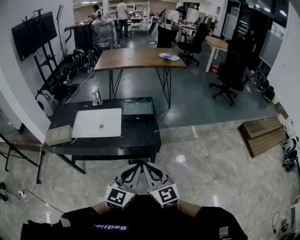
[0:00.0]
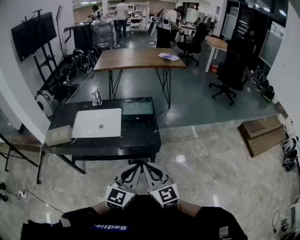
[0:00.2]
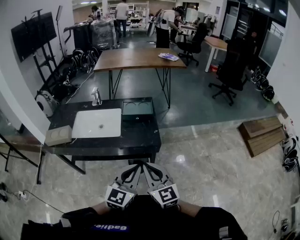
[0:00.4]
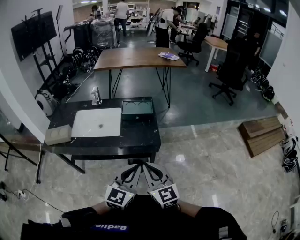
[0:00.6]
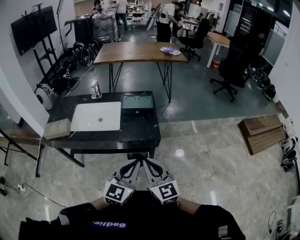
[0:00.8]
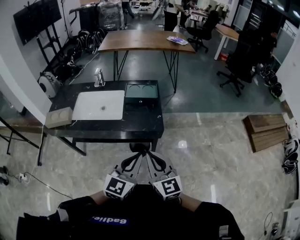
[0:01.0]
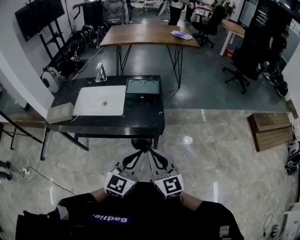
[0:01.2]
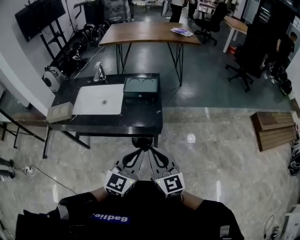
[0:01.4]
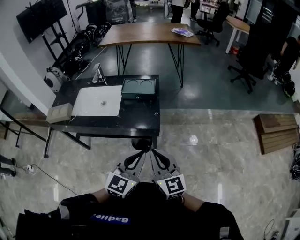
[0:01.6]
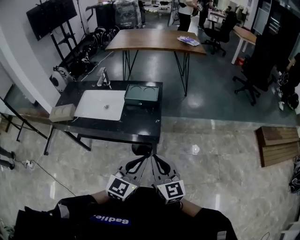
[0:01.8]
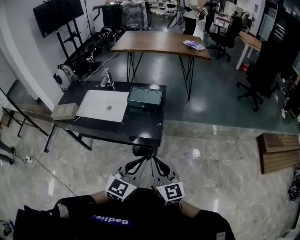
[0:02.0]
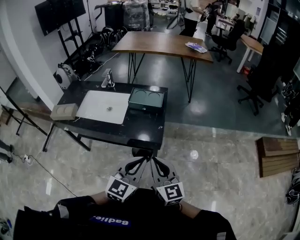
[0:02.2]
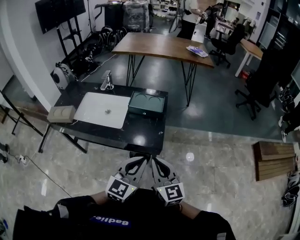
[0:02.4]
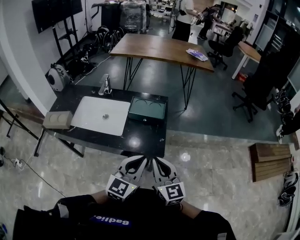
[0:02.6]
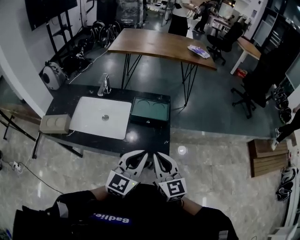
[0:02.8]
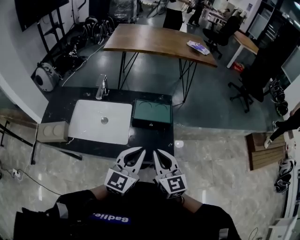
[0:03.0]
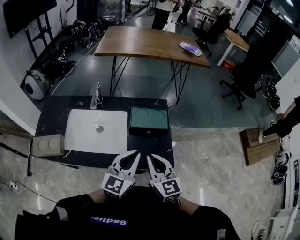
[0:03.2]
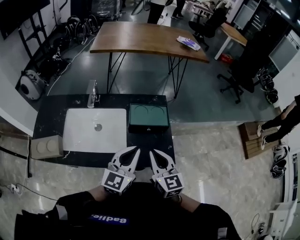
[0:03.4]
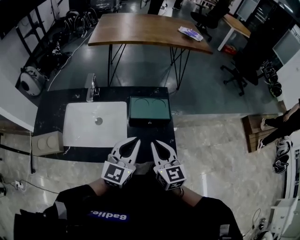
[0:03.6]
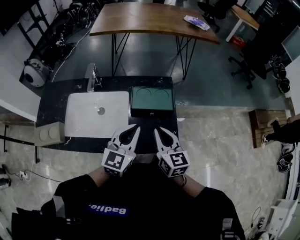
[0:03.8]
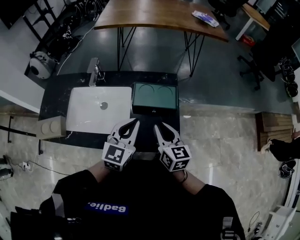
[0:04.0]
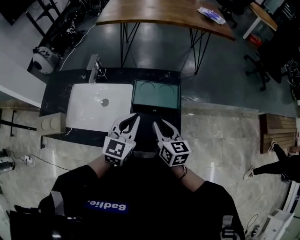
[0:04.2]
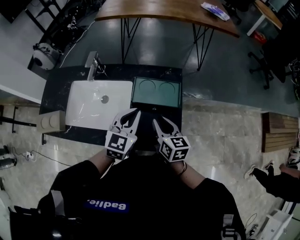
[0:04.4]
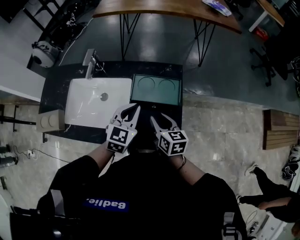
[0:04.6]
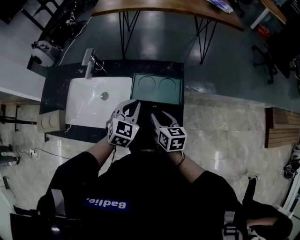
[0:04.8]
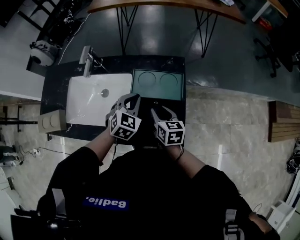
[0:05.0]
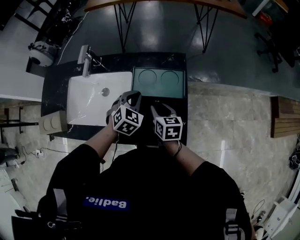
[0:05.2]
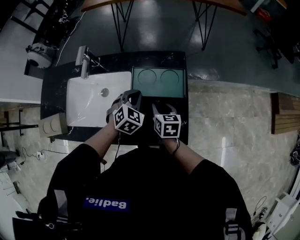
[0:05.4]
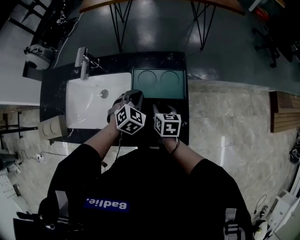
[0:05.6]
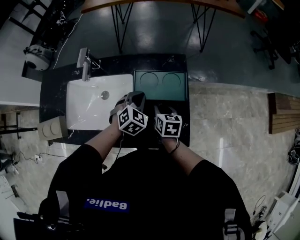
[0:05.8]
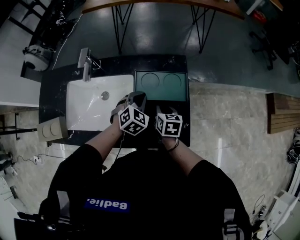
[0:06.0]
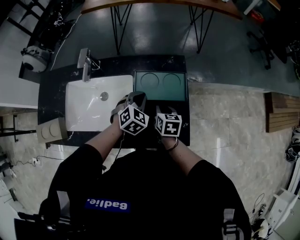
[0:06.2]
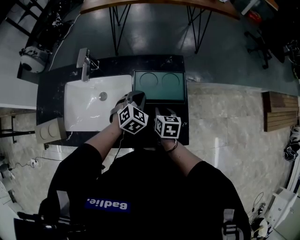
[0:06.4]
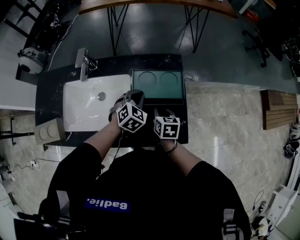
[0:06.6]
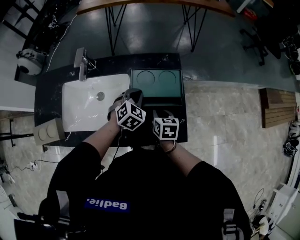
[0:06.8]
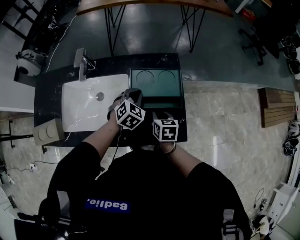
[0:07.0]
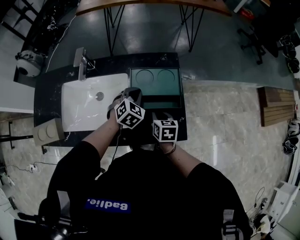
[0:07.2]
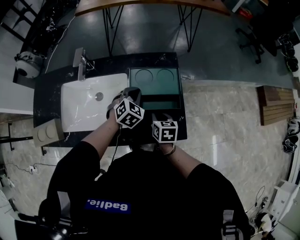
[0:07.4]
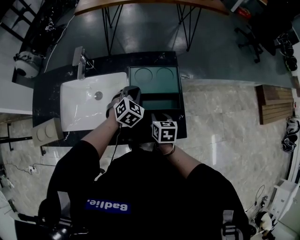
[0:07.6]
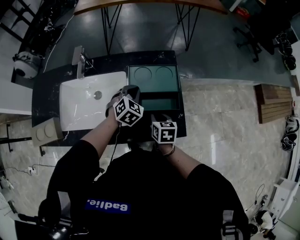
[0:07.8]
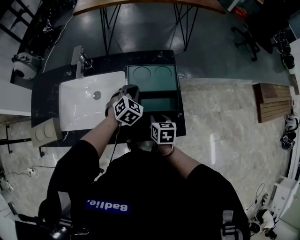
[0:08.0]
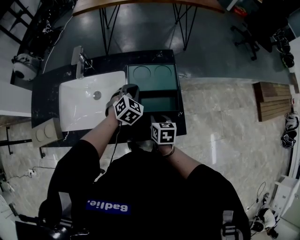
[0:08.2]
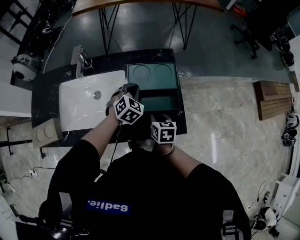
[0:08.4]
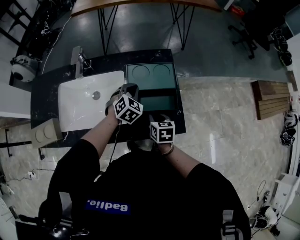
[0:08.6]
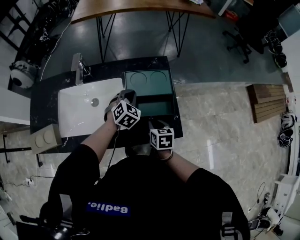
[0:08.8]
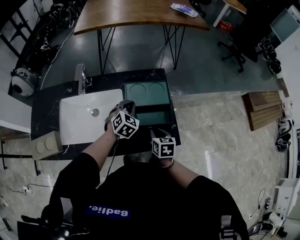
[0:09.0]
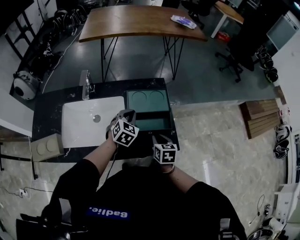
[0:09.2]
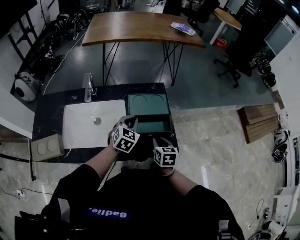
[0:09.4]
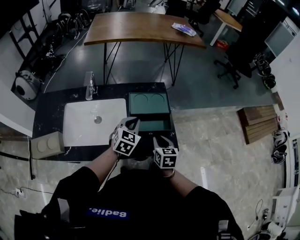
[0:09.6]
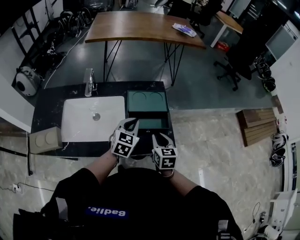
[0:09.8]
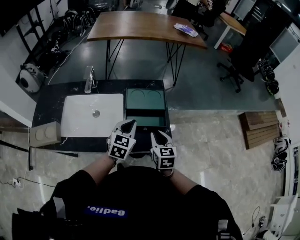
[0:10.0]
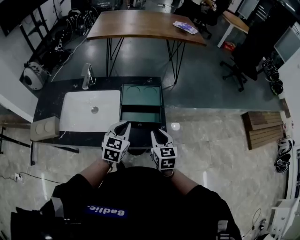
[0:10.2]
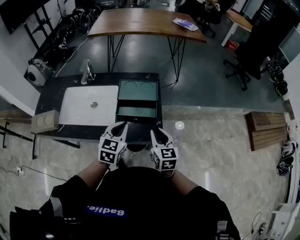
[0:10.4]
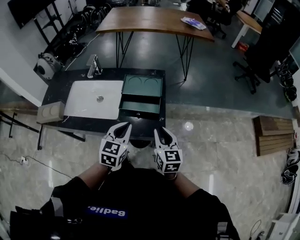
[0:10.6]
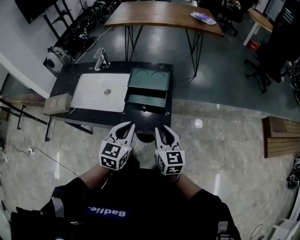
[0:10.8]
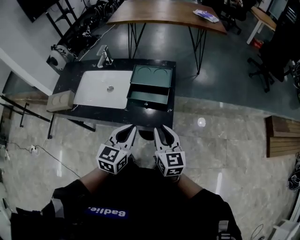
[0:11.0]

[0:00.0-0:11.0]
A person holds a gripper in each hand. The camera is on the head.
0:00.0 to 0:01.6: Both grippers travel together to the right, some 10 cm.
0:01.6 to 0:03.2: Both grippers move forward and to the left, approximately 30 cm.
0:03.2 to 0:04.8: The right gripper heads downward and forward, covering approximately 20 cm, swivels roughly 30 degrees, and opens up. The left gripper is displaced forward and downward by approximately 20 cm, and turns by some 30 degrees.
0:04.8 to 0:06.2: Both grippers travel together downward, some 5 cm.
0:06.2 to 0:07.8: The right gripper heads backward, covering some 10 cm.
0:07.8 to 0:09.4: The left gripper goes about 10 cm upward and backward. Meanwhile the right gripper travels upward by approximately 5 cm.
0:09.4 to 0:11.0: The left gripper is displaced backward and to the right by about 25 cm, and turns by some 30 degrees. Meanwhile the right gripper is displaced upward, backward and to the right by some 20 cm, and swivels approximately 40 degrees.

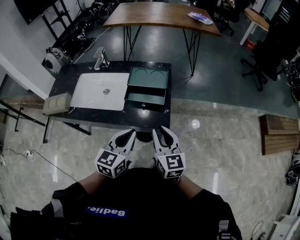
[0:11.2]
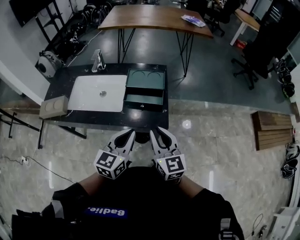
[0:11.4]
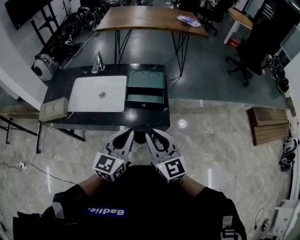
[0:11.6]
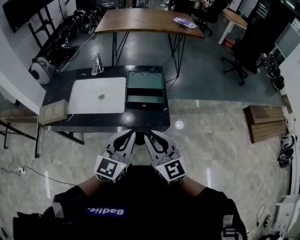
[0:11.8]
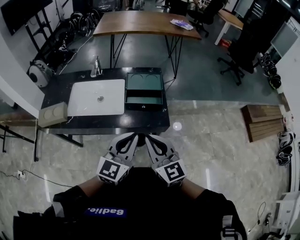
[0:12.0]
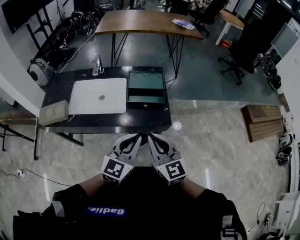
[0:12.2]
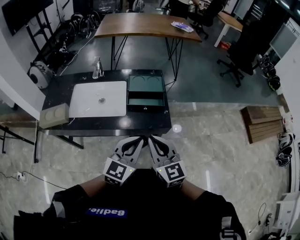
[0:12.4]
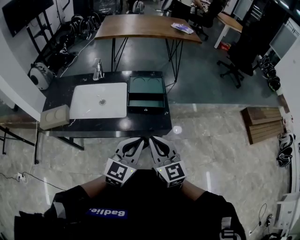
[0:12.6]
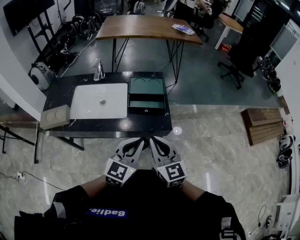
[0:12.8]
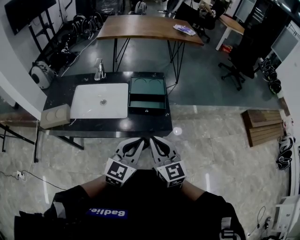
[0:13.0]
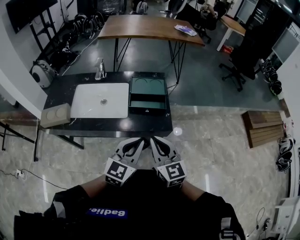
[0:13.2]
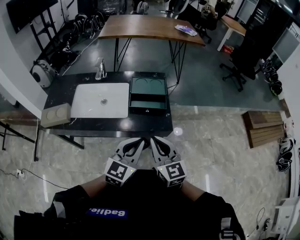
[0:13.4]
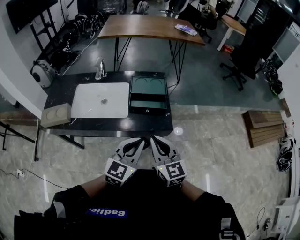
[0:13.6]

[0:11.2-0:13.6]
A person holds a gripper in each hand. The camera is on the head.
0:11.2 to 0:12.4: The right gripper goes roughly 15 cm to the left, backward and upward. The left gripper shifts roughly 10 cm backward and upward, and rotates about 20 degrees.
0:12.4 to 0:13.6: The grippers move only a little.

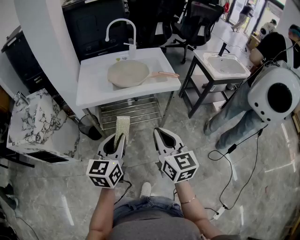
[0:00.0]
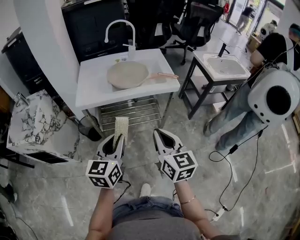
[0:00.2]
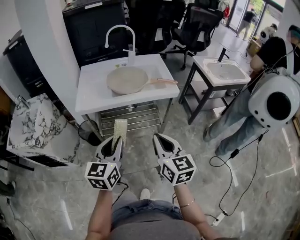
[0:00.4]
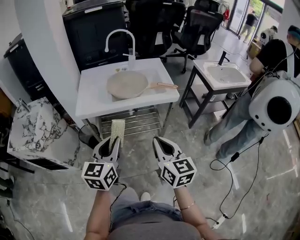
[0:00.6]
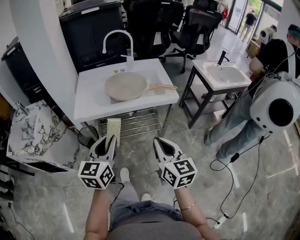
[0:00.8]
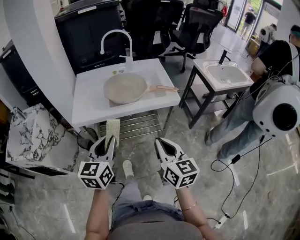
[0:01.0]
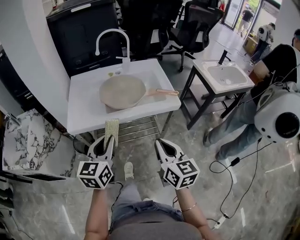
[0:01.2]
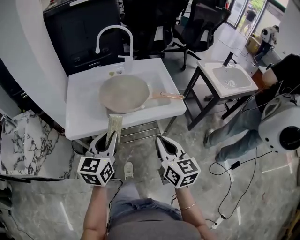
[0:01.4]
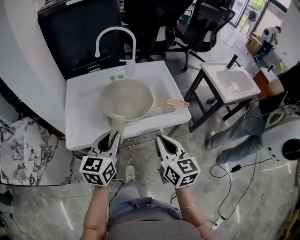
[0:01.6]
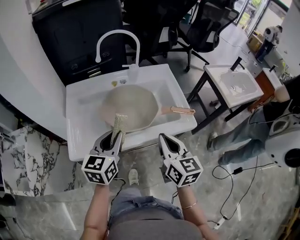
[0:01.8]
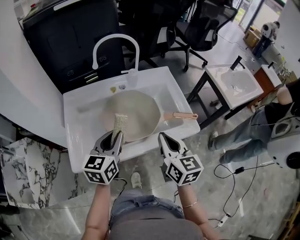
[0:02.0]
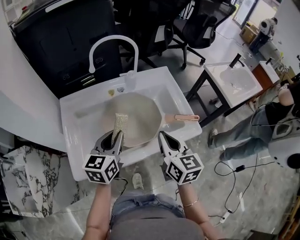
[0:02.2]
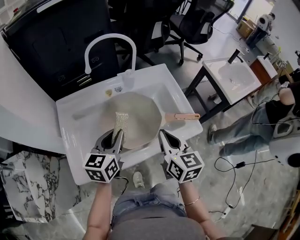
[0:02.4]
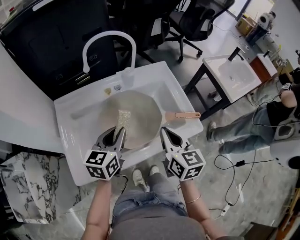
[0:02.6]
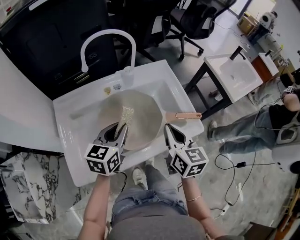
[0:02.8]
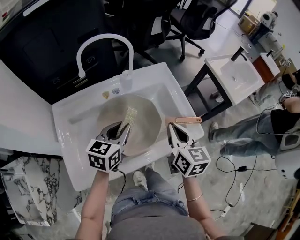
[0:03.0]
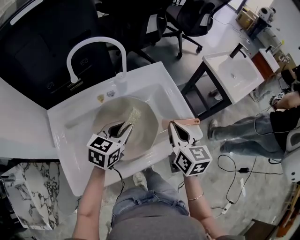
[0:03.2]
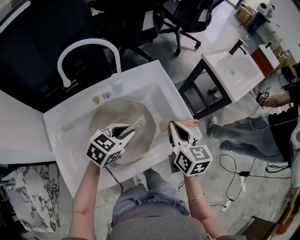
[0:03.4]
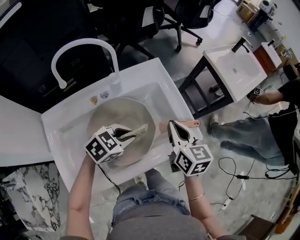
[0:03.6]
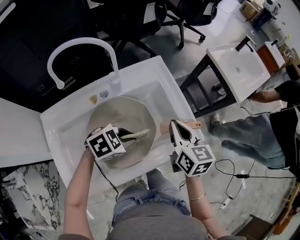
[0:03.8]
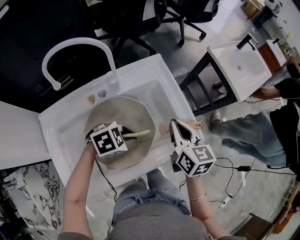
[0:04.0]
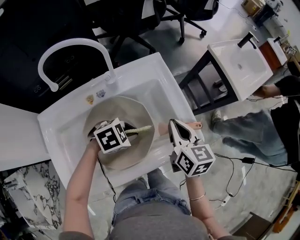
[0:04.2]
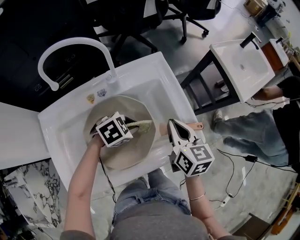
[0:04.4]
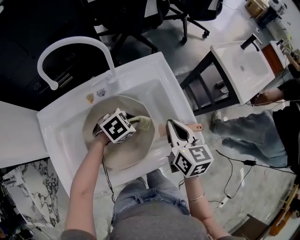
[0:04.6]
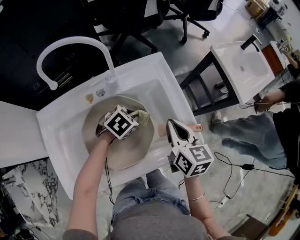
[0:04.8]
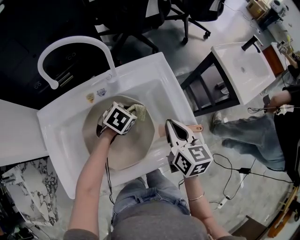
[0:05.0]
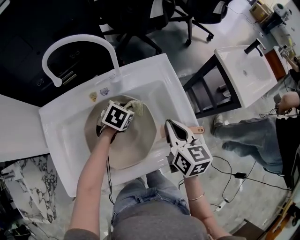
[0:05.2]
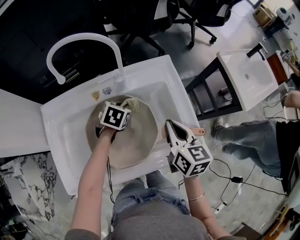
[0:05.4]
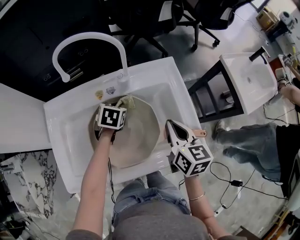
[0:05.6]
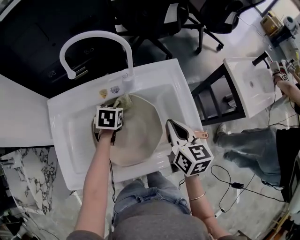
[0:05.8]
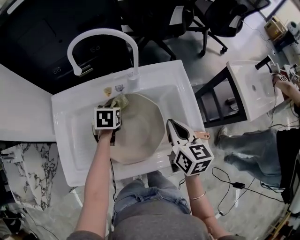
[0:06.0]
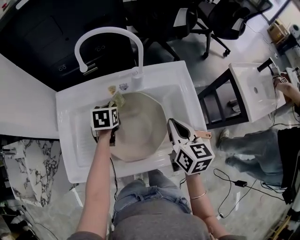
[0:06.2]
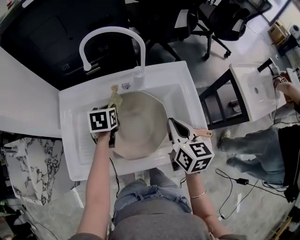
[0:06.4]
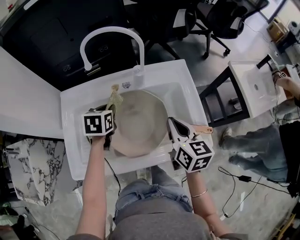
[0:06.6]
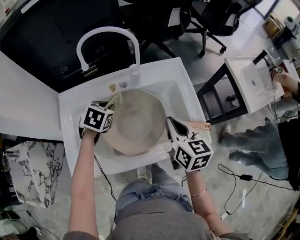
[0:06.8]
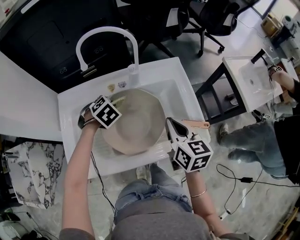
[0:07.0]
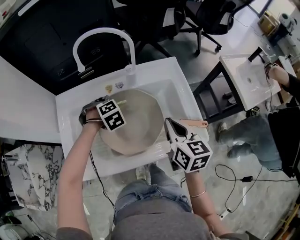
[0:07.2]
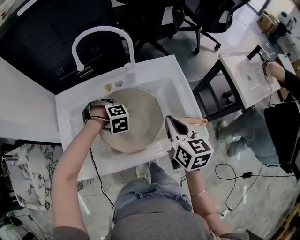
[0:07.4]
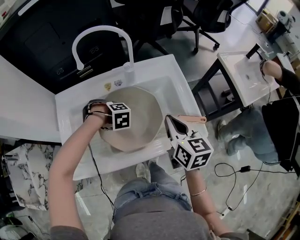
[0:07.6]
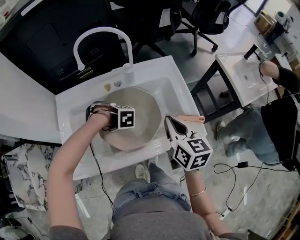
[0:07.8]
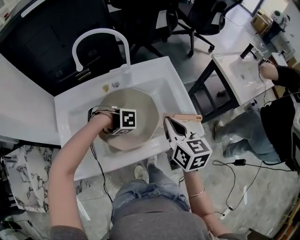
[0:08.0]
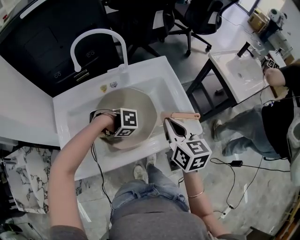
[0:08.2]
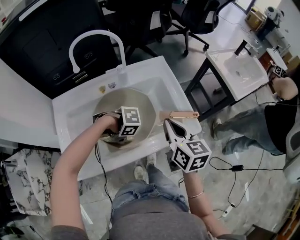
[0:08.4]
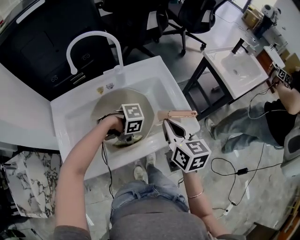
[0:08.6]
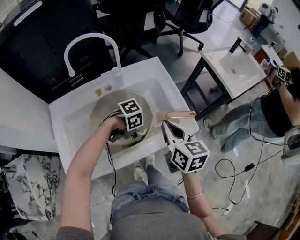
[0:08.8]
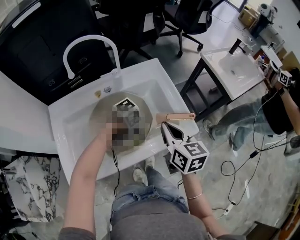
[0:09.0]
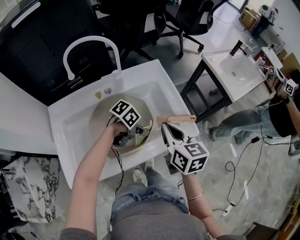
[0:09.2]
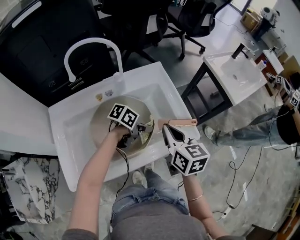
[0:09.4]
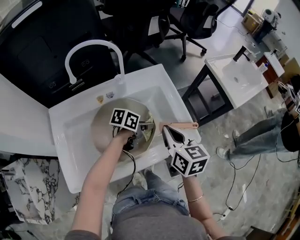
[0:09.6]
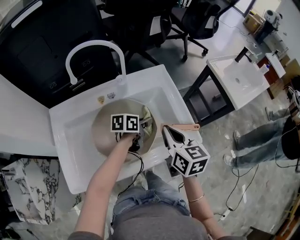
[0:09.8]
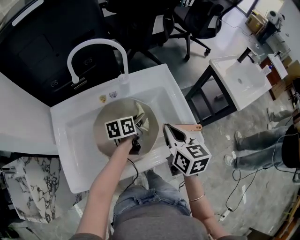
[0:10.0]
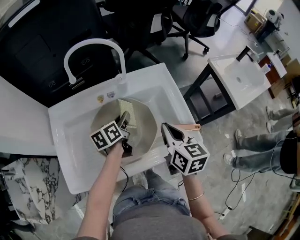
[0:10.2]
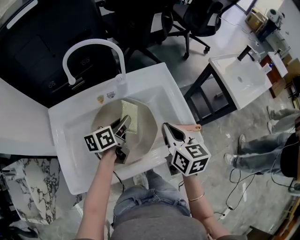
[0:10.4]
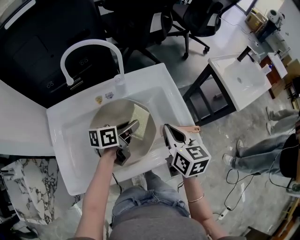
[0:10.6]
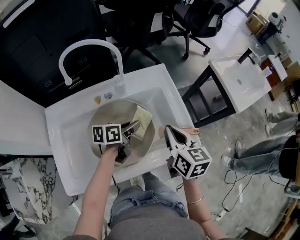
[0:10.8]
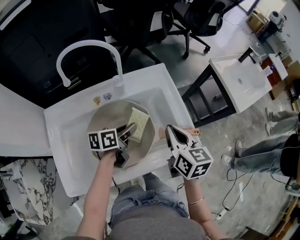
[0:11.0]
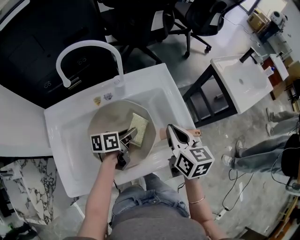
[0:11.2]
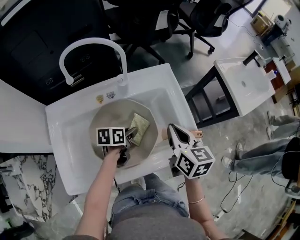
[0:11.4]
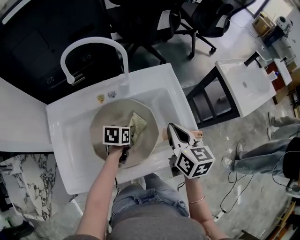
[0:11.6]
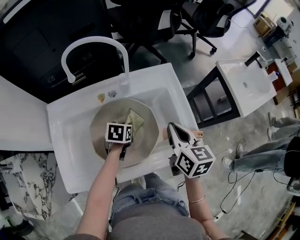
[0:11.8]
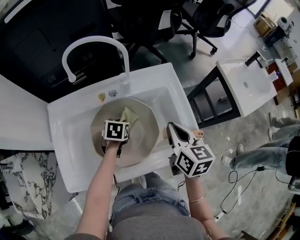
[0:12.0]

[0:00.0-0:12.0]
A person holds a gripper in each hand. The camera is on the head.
0:00.0 to 0:01.6: The two grippers go about 25 cm forward.
0:01.6 to 0:03.0: The grippers both shift forward by about 20 cm. The left gripper turns by approximately 20 degrees.
0:03.0 to 0:04.4: The right gripper ends up roughly 10 cm from where it was; the left gripper goes some 10 cm downward, and tilts its fingers roughly 30 degrees downward.
0:04.4 to 0:06.0: The left gripper moves approximately 20 cm, and turns by about 70 degrees. Meanwhile the right gripper changes place by approximately 5 cm.
0:06.0 to 0:07.6: The right gripper shifts by approximately 5 cm. Meanwhile the left gripper moves some 10 cm, and twists about 80 degrees clockwise, seen from behind.
0:07.6 to 0:09.0: The left gripper changes place by some 20 cm, and points its fingers about 30 degrees further upward.
0:09.0 to 0:10.4: The left gripper shifts by approximately 15 cm, and swivels approximately 80 degrees; the right gripper ends up approximately 5 cm from where it was.
0:10.4 to 0:12.0: The left gripper shifts approximately 10 cm downward, and tilts its fingers some 40 degrees downward.
